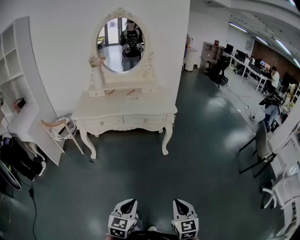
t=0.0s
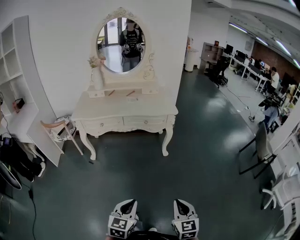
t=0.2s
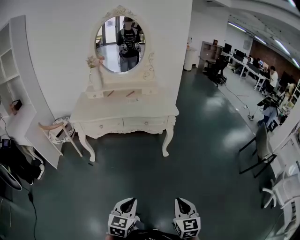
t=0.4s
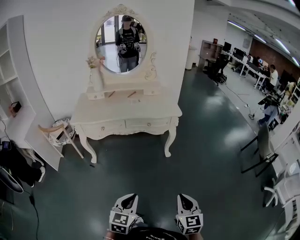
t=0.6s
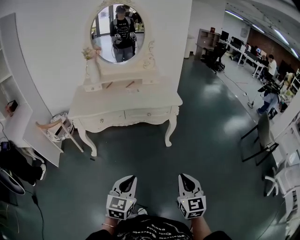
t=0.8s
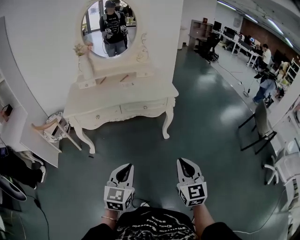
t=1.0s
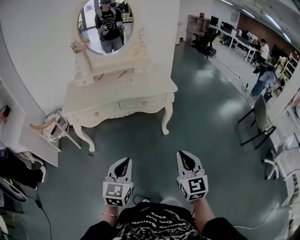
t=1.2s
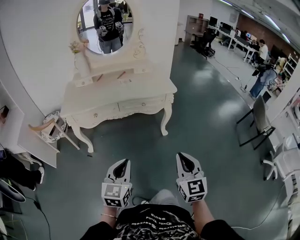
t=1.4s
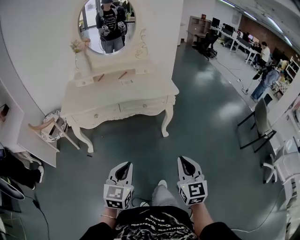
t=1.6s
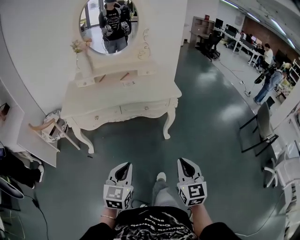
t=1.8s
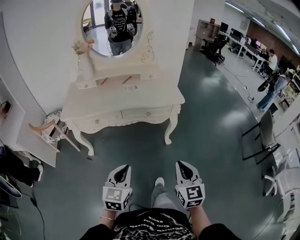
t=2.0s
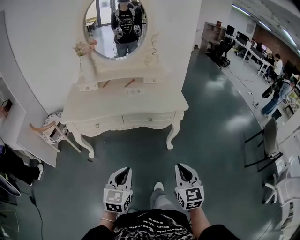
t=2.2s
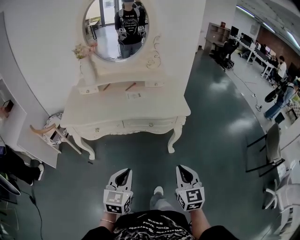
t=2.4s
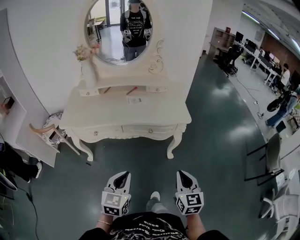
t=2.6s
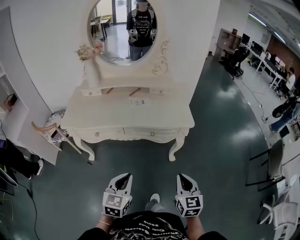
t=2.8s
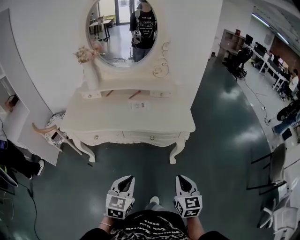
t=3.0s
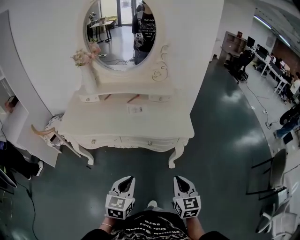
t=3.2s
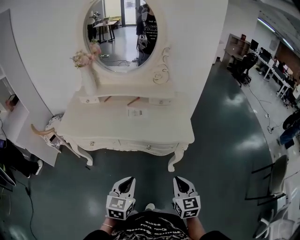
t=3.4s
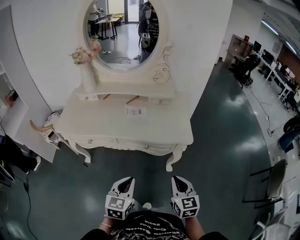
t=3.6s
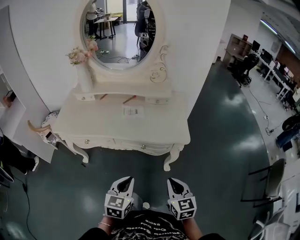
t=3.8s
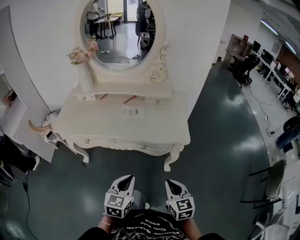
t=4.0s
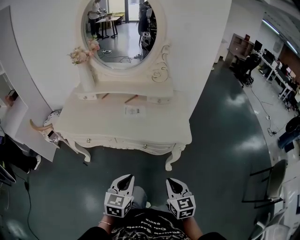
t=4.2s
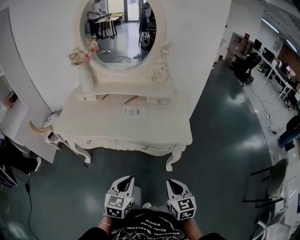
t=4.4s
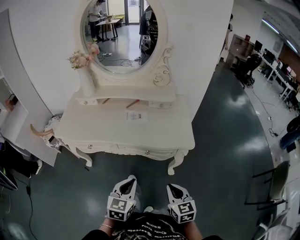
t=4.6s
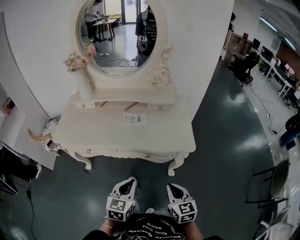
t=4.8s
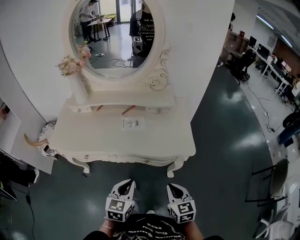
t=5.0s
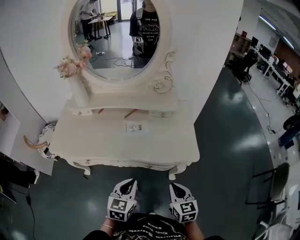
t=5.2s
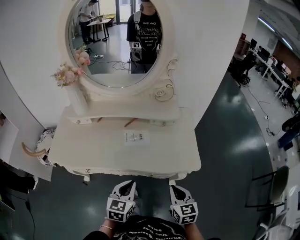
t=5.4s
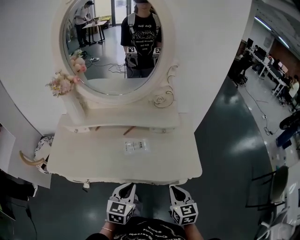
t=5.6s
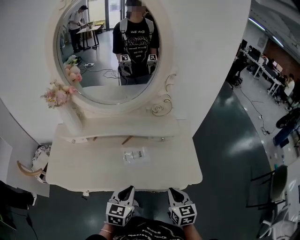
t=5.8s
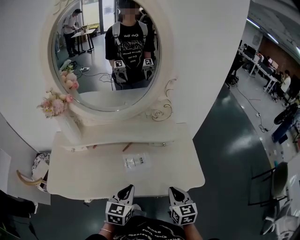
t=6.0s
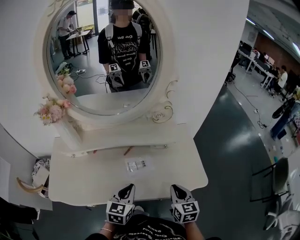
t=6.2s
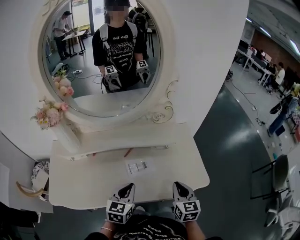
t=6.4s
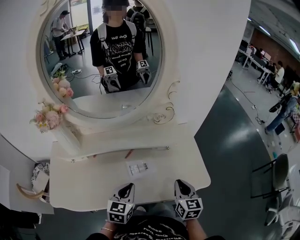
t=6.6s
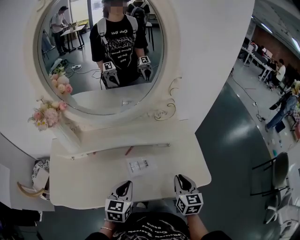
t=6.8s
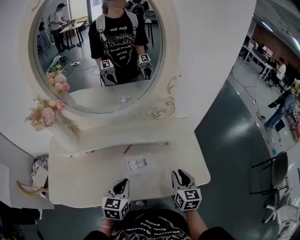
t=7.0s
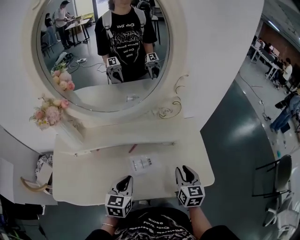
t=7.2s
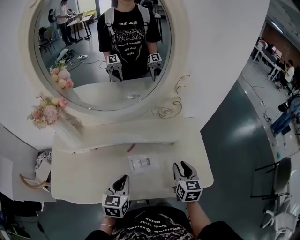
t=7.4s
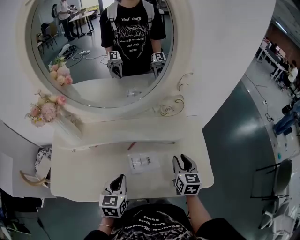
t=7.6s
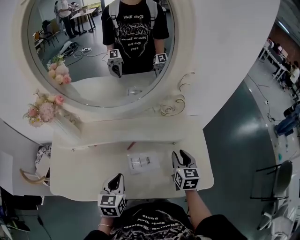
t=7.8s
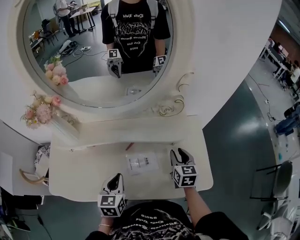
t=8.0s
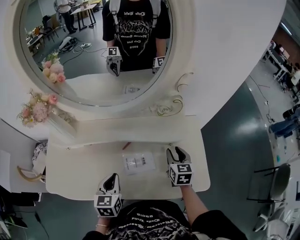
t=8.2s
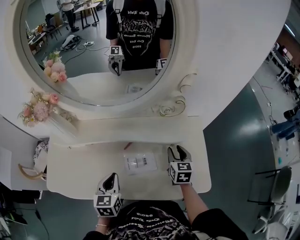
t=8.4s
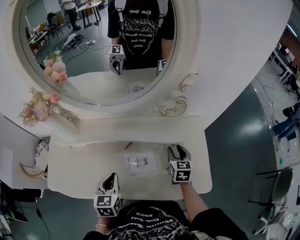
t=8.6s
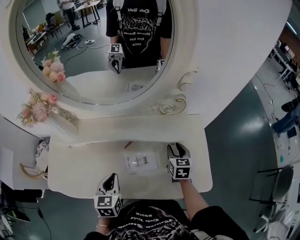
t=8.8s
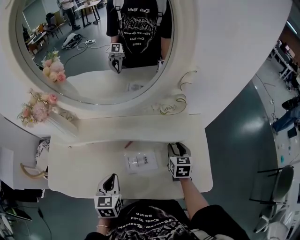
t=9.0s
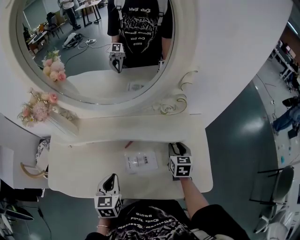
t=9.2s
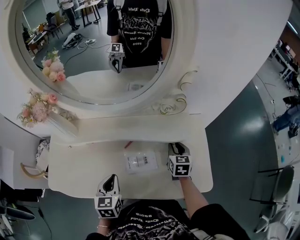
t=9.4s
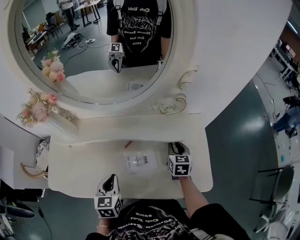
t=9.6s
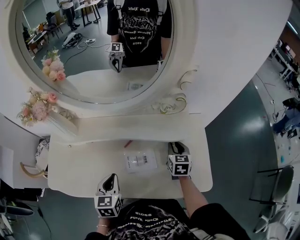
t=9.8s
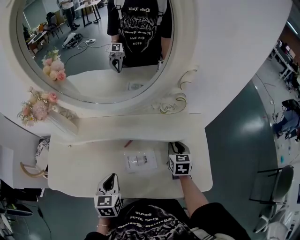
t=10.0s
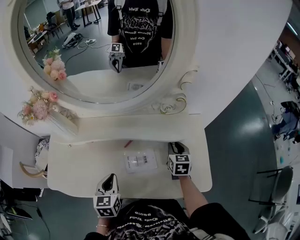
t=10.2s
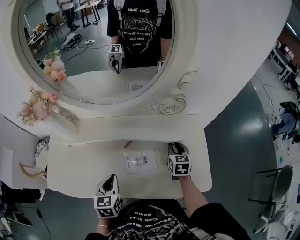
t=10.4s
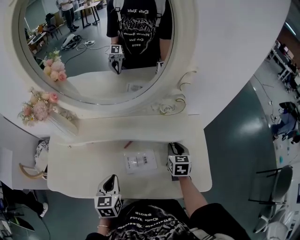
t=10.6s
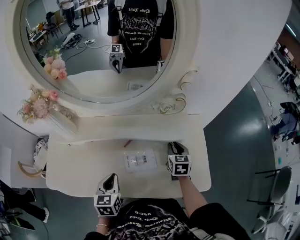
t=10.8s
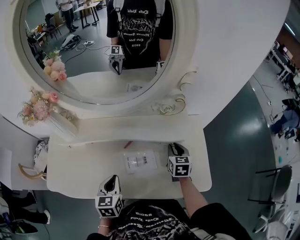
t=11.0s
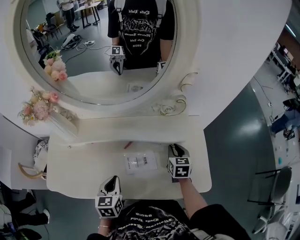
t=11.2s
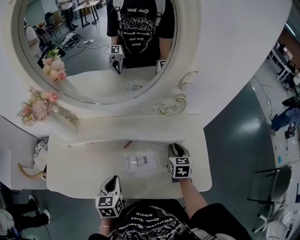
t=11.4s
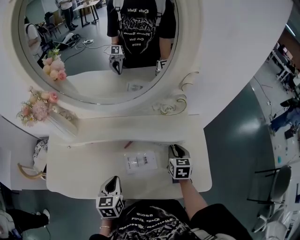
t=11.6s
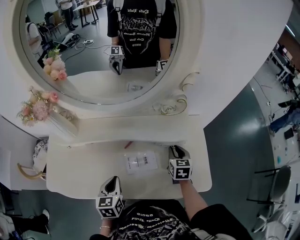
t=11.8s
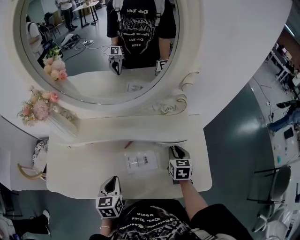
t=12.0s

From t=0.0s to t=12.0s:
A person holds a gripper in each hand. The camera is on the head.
From t=0.0s to t=1.6s: The two grippers go about 20 cm forward and to the left.
From t=1.6s to t=3.0s: Both grippers move forward, roughly 20 cm.
From t=3.0s to t=4.4s: The right gripper moves forward, roughly 5 cm, while the left gripper goes roughly 10 cm forward and to the right.
From t=4.4s to t=6.0s: Both grippers travel together forward, about 25 cm.
From t=6.0s to t=7.6s: The right gripper is displaced forward by some 15 cm, and opens its fingers, while the left gripper is displaced to the left and forward by roughly 10 cm.
From t=7.6s to t=9.0s: The right gripper is displaced forward and downward by roughly 10 cm.
From t=9.0s to t=10.4s: The two grippers keep their place.
From t=10.4s to t=12.0s: The grippers stay close to where they were, moving slightly.

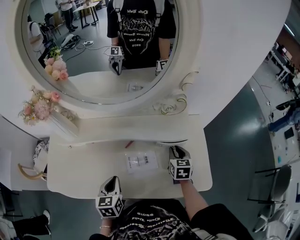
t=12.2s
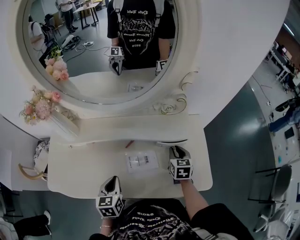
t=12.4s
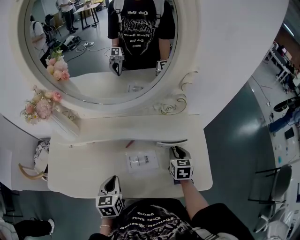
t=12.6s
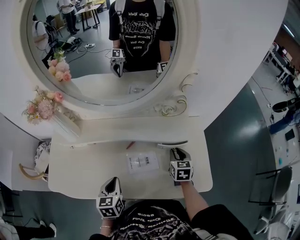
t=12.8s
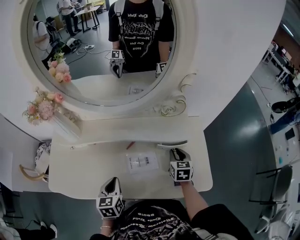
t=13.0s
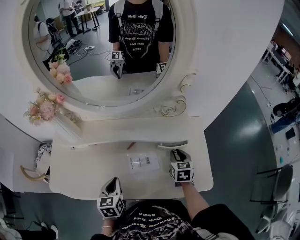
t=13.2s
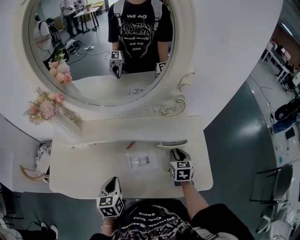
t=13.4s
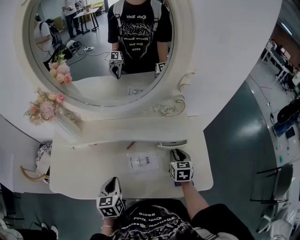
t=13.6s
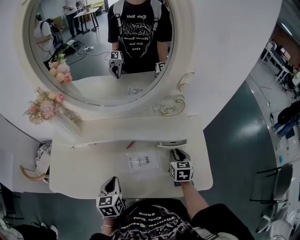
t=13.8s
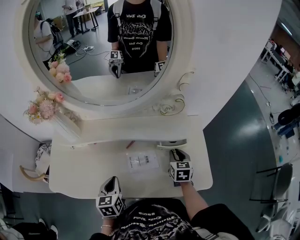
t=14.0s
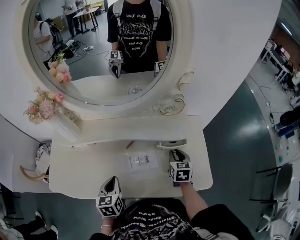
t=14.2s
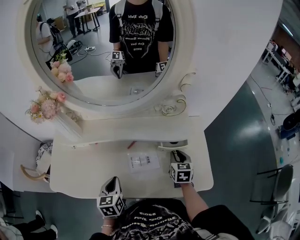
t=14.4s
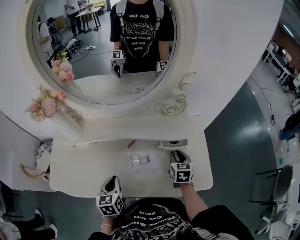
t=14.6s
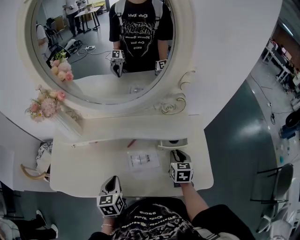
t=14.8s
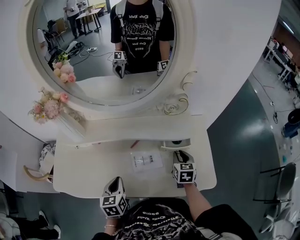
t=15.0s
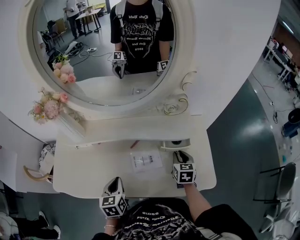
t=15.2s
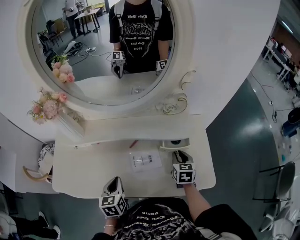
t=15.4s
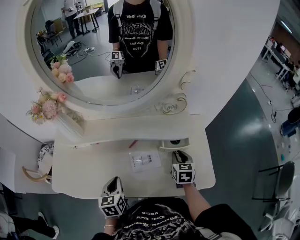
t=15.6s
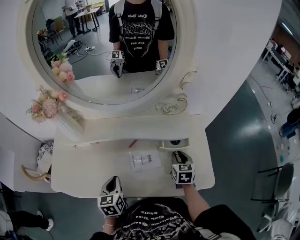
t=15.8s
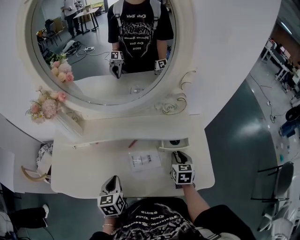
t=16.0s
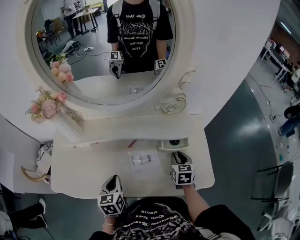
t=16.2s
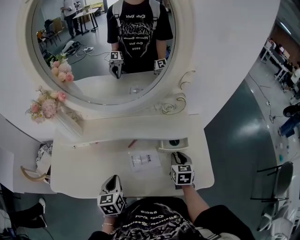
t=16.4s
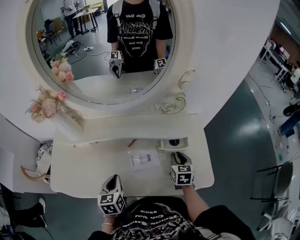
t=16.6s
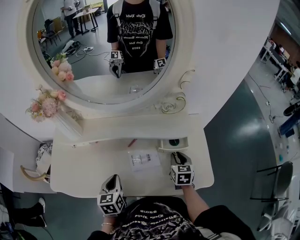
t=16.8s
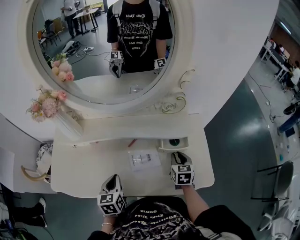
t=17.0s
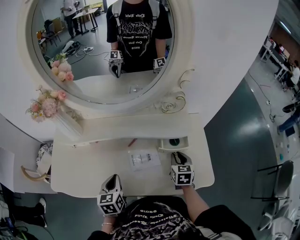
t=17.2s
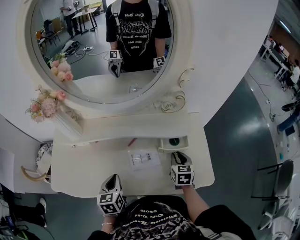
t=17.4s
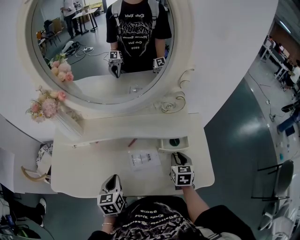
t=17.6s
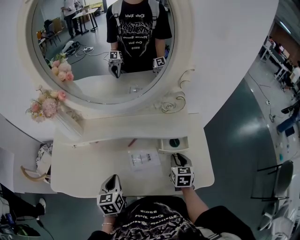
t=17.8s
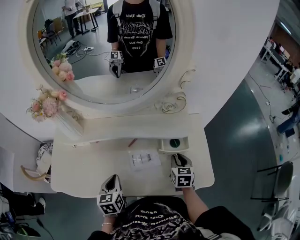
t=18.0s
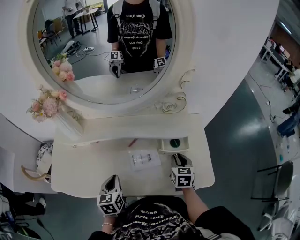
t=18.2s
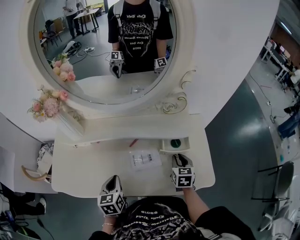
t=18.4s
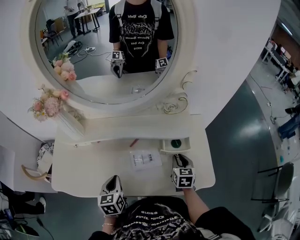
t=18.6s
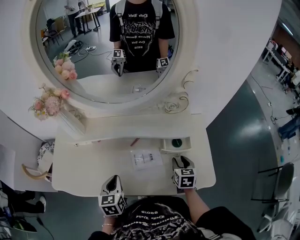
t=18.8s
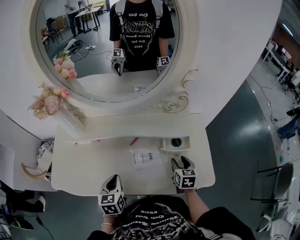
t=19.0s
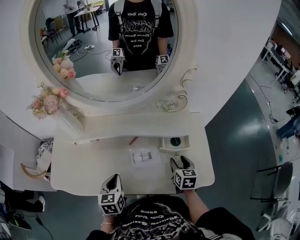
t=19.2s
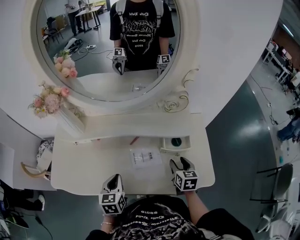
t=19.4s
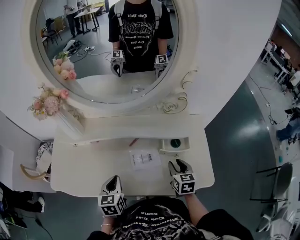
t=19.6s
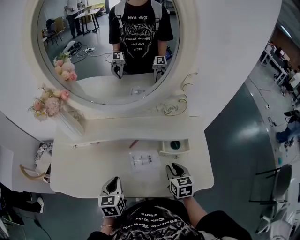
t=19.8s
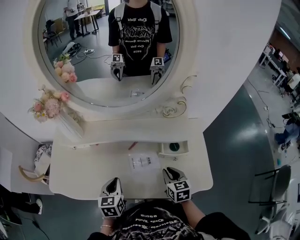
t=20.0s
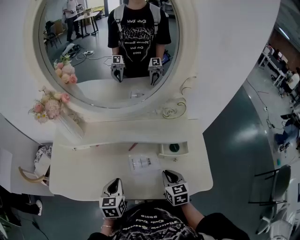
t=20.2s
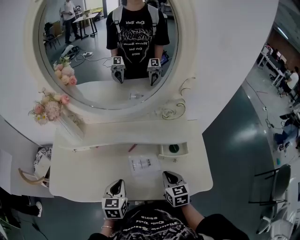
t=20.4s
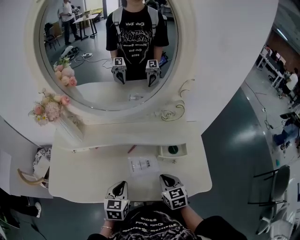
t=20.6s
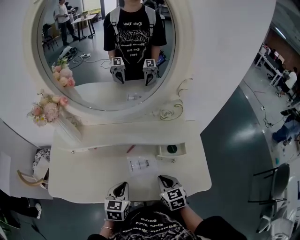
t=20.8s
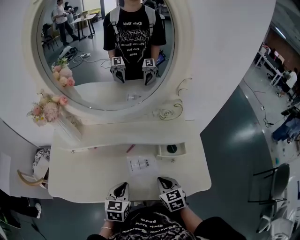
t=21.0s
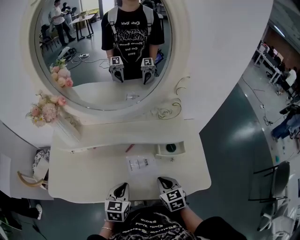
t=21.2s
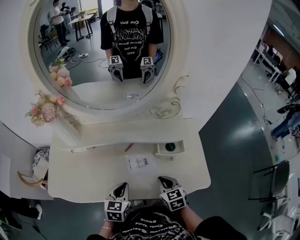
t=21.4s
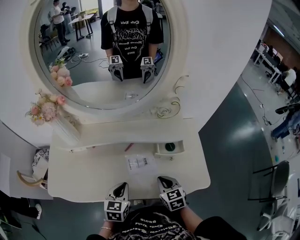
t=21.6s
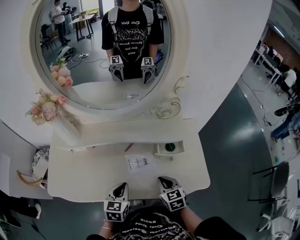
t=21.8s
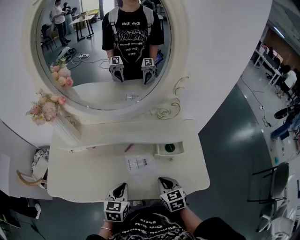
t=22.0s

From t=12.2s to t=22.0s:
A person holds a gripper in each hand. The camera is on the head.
From t=12.2s to t=13.6s: There are only small adjustments of the grippers.
From t=13.6s to t=15.0s: Both grippers stay put.
From t=15.0s to t=16.4s: Both grippers stay about where they are.
From t=16.4s to t=17.8s: Neither gripper changes place.
From t=17.8s to t=19.2s: The right gripper opens up.
From t=19.2s to t=20.6s: The right gripper goes about 10 cm to the left, and closes up.
From t=20.6s to t=22.0s: The grippers make only small movements.

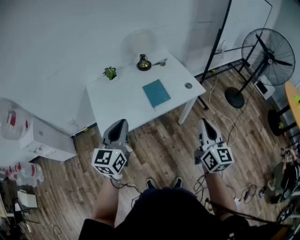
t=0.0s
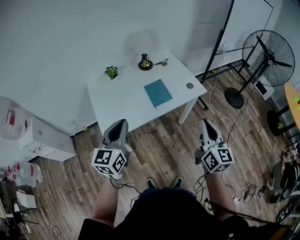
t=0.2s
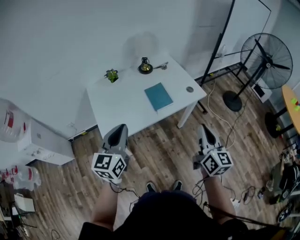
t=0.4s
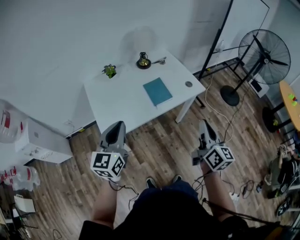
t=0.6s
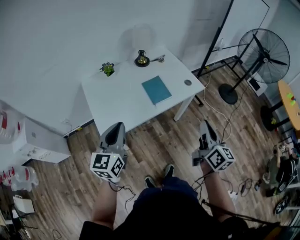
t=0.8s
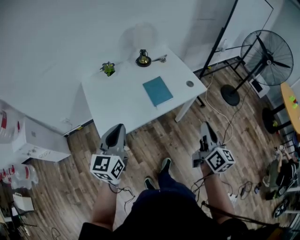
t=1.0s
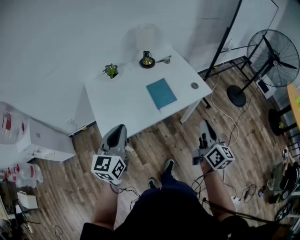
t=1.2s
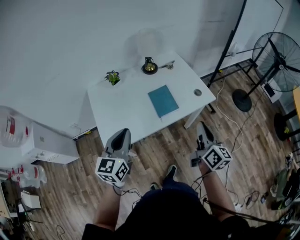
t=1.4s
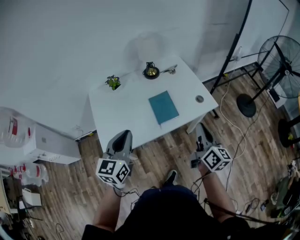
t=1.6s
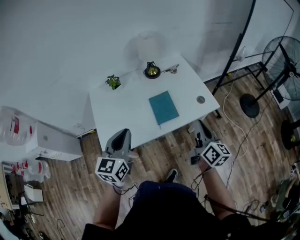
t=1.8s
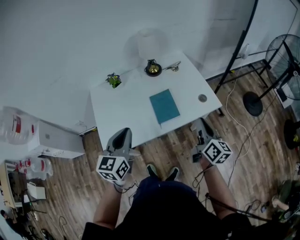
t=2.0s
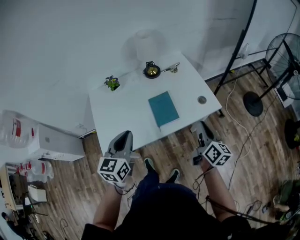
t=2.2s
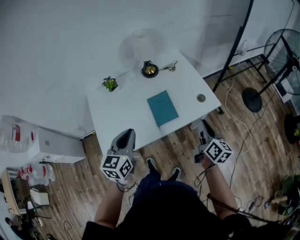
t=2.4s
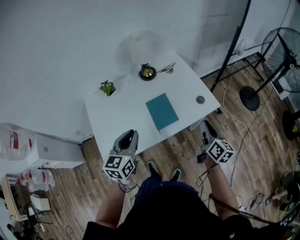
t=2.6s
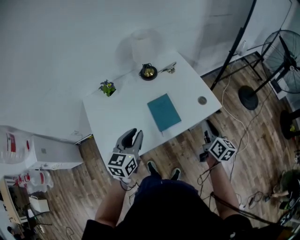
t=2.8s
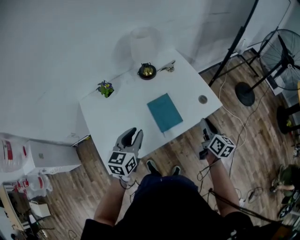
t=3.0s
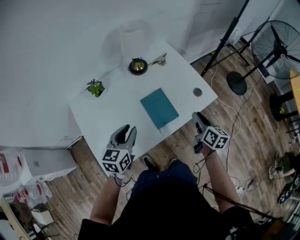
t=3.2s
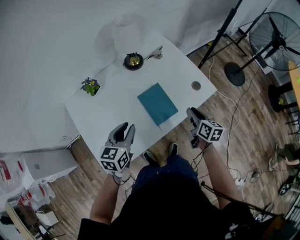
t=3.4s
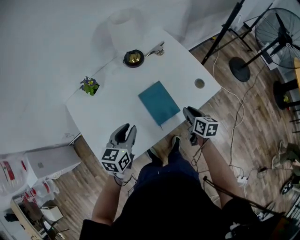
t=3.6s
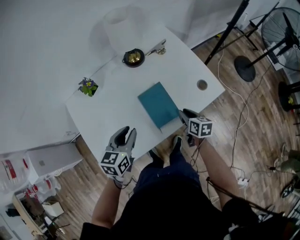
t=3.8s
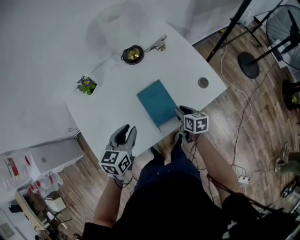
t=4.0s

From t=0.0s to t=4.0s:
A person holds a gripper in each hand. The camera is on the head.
From t=0.0s to t=1.4s: The right gripper heads forward and downward, covering some 15 cm, and changes its angle by roughly 20 degrees. Meanwhile the left gripper is displaced forward by some 10 cm.
From t=1.4s to t=2.6s: The right gripper moves forward, downward and to the right, roughly 20 cm. Meanwhile the left gripper heads forward, to the right and downward, covering about 15 cm.
From t=2.6s to t=4.0s: The right gripper moves downward, to the left and forward, about 30 cm, and rotates roughly 30 degrees. The left gripper moves forward and downward, roughly 15 cm.
